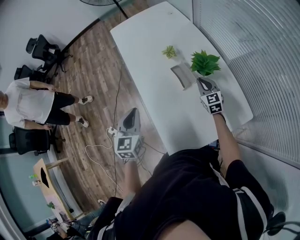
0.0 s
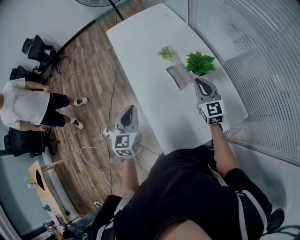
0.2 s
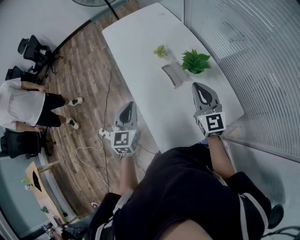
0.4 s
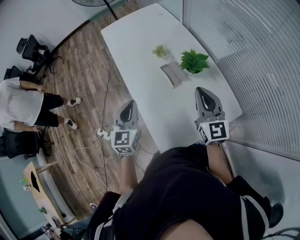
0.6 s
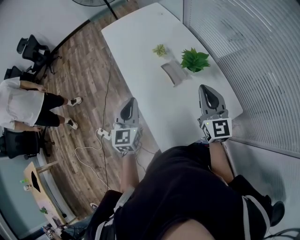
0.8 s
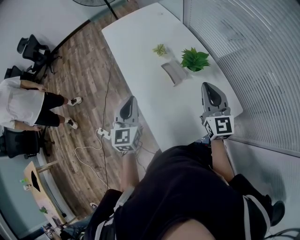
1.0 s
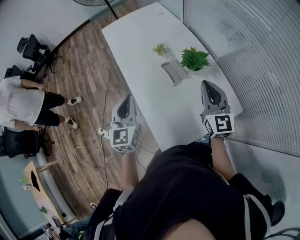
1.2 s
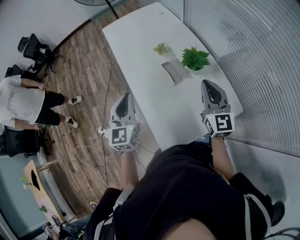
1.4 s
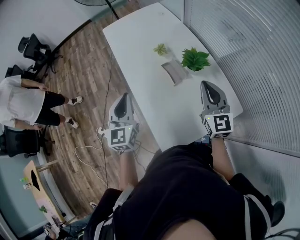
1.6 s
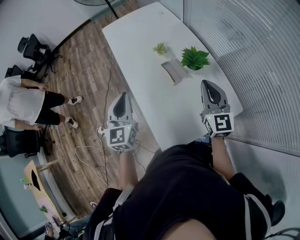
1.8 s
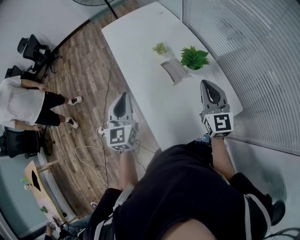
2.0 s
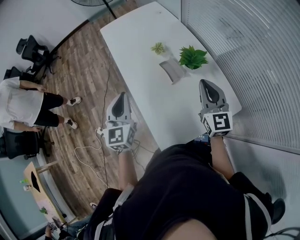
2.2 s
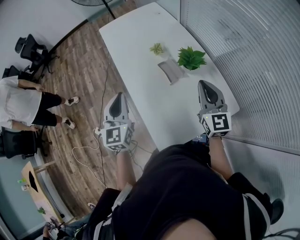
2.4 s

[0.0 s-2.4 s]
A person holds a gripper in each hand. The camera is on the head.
0.0 to 1.2 s: The right gripper travels upward and backward by roughly 25 cm, and swivels approximately 20 degrees. Meanwhile the left gripper moves upward, approximately 5 cm.
1.2 to 2.4 s: The grippers move only a little.

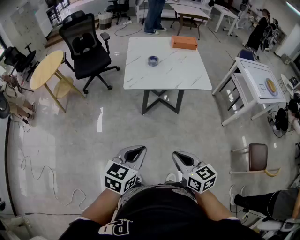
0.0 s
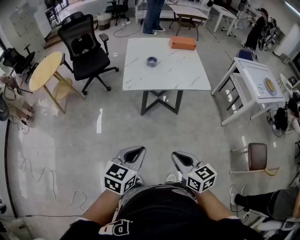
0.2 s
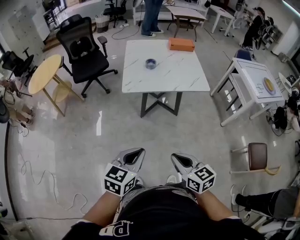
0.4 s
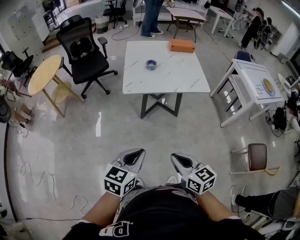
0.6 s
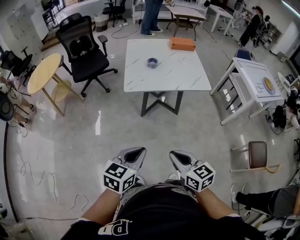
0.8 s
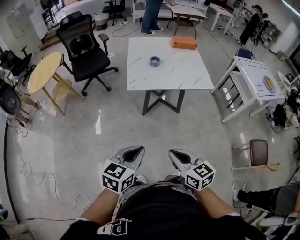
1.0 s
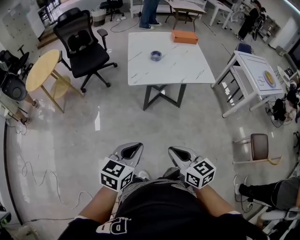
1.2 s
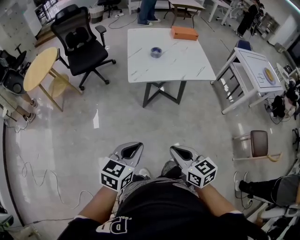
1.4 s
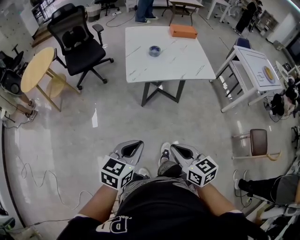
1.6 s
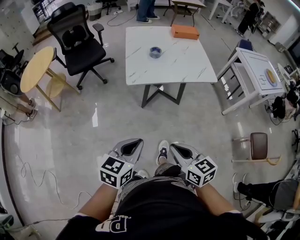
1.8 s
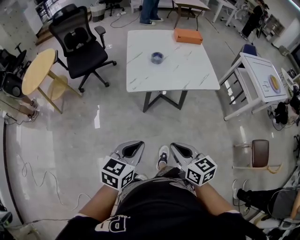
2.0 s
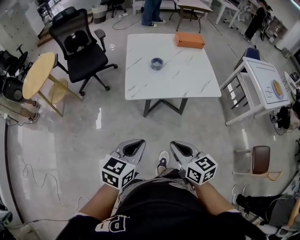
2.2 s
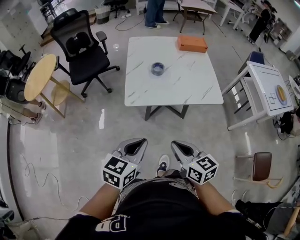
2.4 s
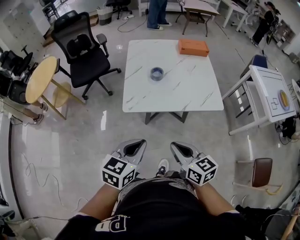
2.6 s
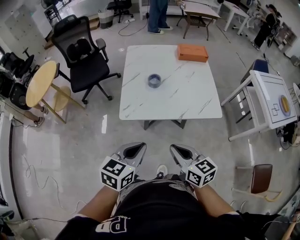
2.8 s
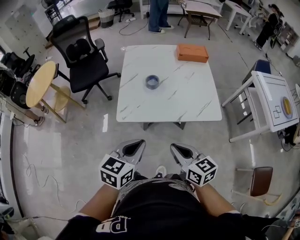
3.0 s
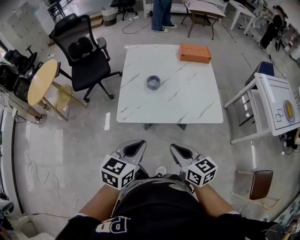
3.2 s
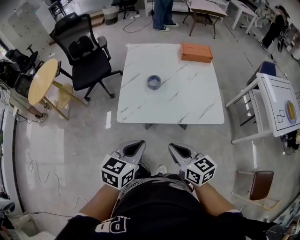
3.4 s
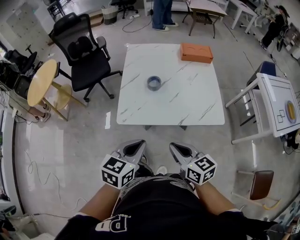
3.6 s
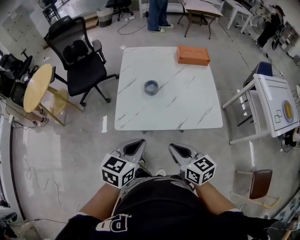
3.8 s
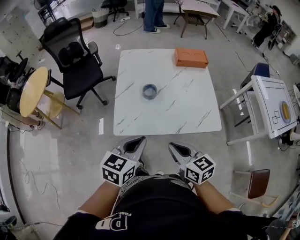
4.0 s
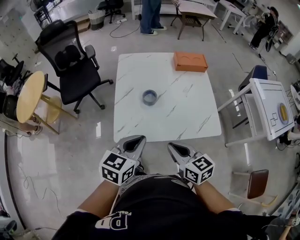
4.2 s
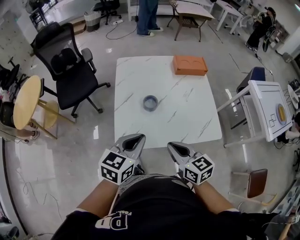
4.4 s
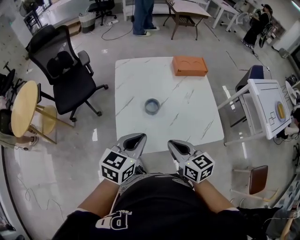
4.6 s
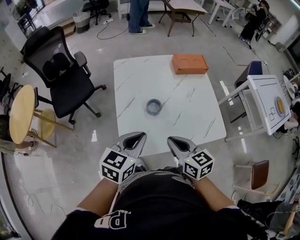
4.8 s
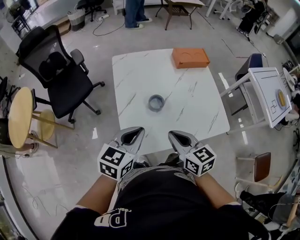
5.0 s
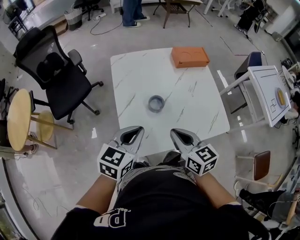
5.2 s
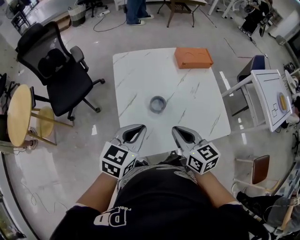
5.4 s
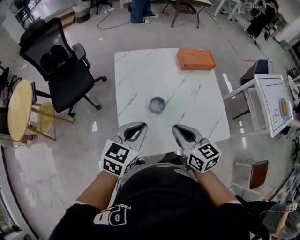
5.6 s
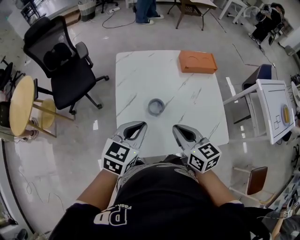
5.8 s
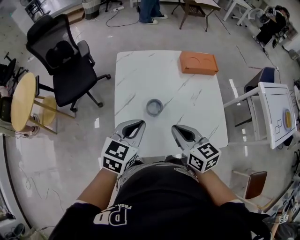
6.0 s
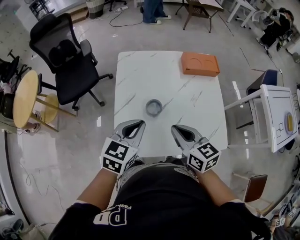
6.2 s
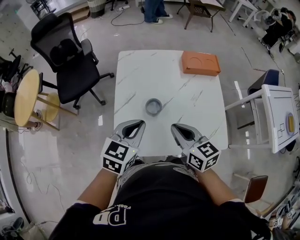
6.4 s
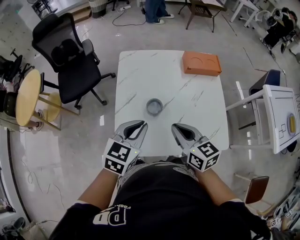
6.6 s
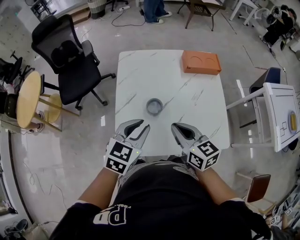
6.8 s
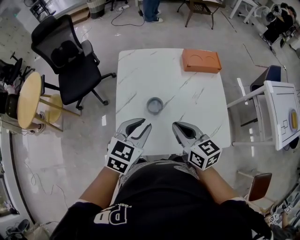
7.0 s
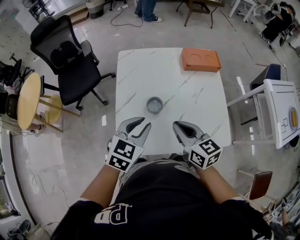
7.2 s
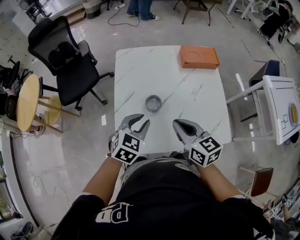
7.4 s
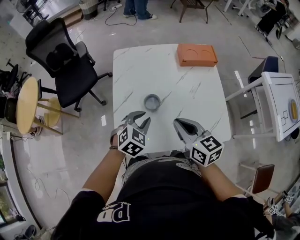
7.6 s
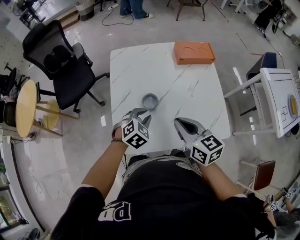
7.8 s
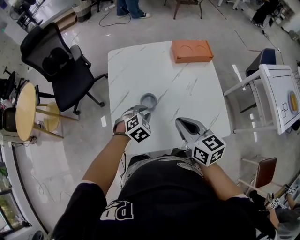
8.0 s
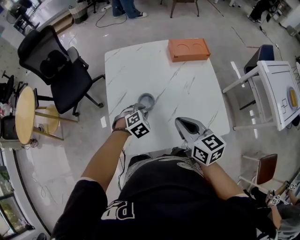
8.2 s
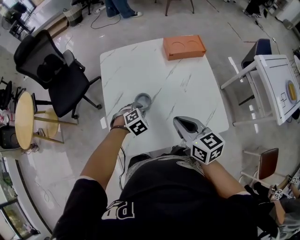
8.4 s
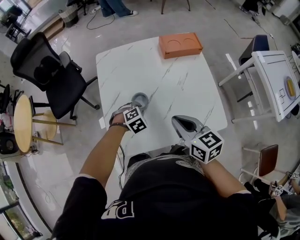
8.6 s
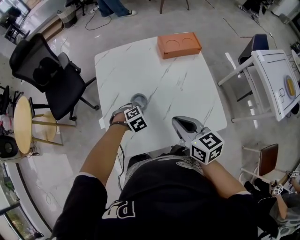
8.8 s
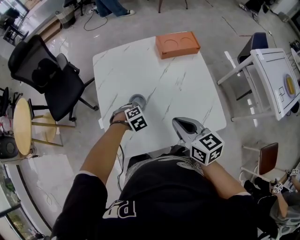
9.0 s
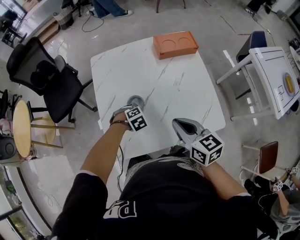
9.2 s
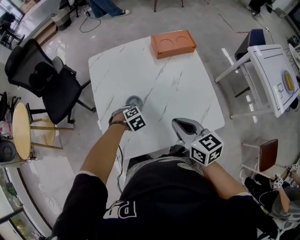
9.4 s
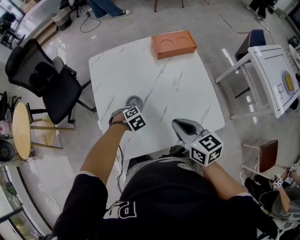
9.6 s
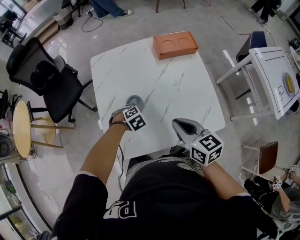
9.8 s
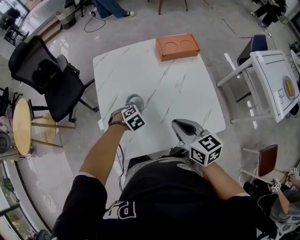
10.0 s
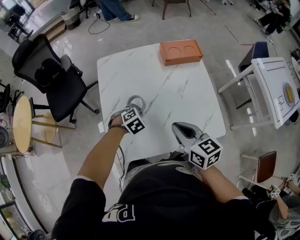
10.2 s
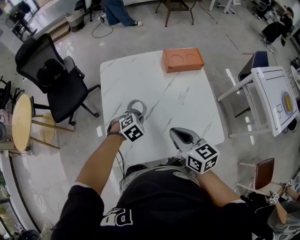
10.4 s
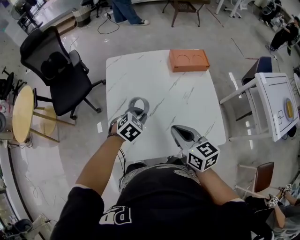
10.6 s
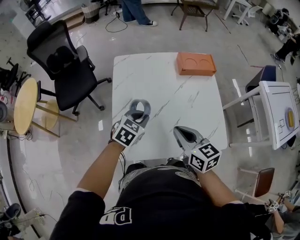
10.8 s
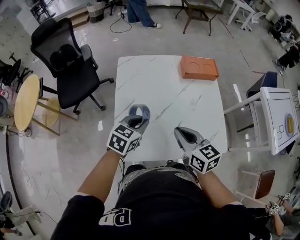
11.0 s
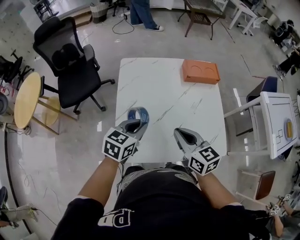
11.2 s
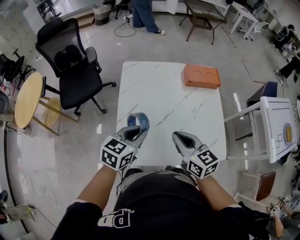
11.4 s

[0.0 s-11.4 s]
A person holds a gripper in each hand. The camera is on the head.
0.0 to 1.4 s: Both grippers travel together to the left, some 10 cm.
1.4 to 2.8 s: The grippers both shift forward by about 30 cm.
2.8 to 4.2 s: The grippers both shift forward by approximately 15 cm.
4.2 to 5.6 s: The two grippers go roughly 15 cm forward and to the left.
5.6 to 7.2 s: The right gripper ends up roughly 5 cm from where it was. The left gripper is displaced to the right by approximately 5 cm, and opens up.
7.2 to 8.6 s: The right gripper is displaced to the right by some 5 cm; the left gripper shifts about 20 cm downward, and points its fingers approximately 40 degrees further downward.
8.6 to 10.0 s: There are only small adjustments of the grippers.
10.0 to 11.4 s: The right gripper shifts approximately 10 cm to the left. Meanwhile the left gripper travels upward by roughly 20 cm, and points its fingers about 40 degrees further upward.

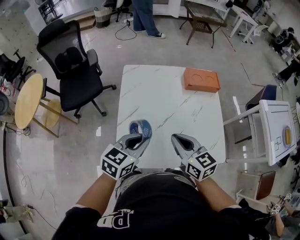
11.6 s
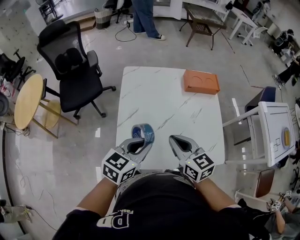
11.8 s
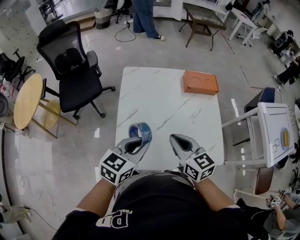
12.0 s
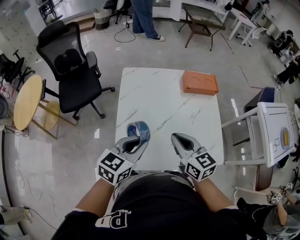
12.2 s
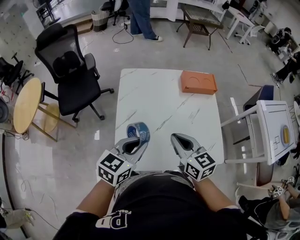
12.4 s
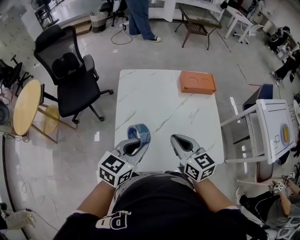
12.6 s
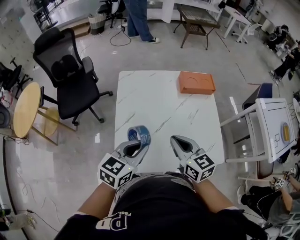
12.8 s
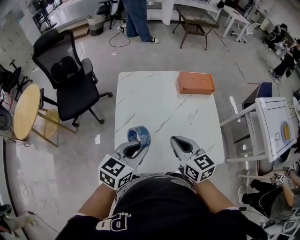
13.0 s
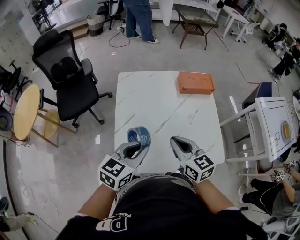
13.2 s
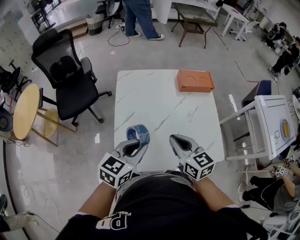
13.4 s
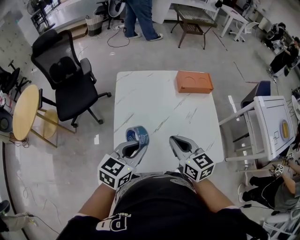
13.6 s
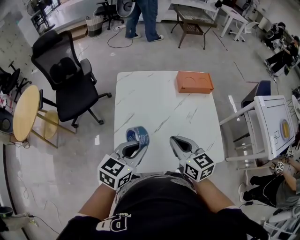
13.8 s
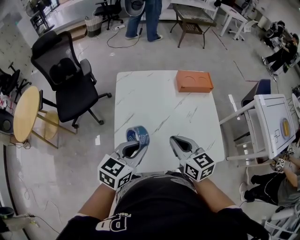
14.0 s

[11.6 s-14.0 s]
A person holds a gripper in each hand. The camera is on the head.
11.6 to 12.8 s: The grippers move only a little.
12.8 to 14.0 s: Neither gripper changes place.

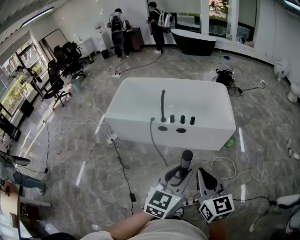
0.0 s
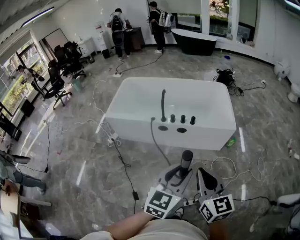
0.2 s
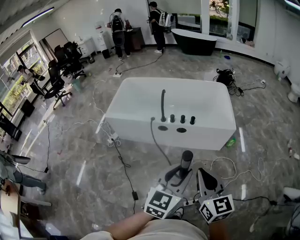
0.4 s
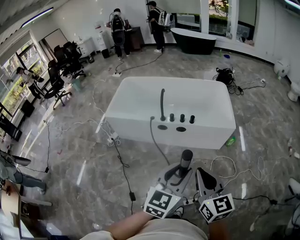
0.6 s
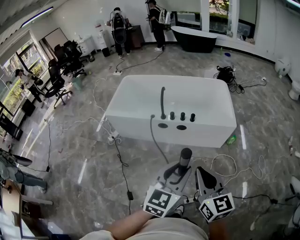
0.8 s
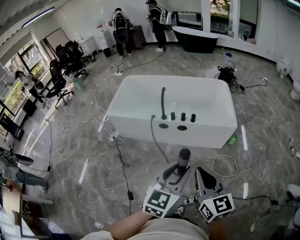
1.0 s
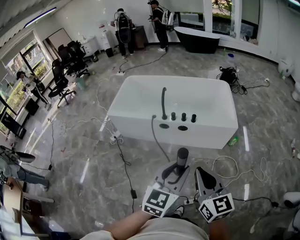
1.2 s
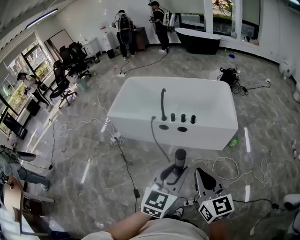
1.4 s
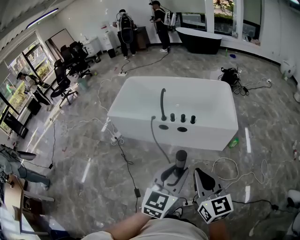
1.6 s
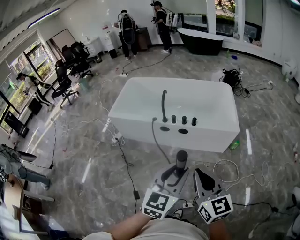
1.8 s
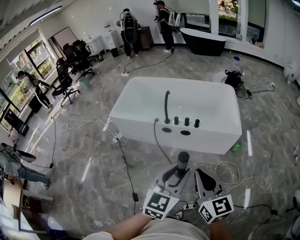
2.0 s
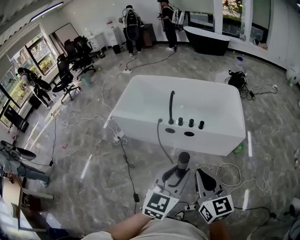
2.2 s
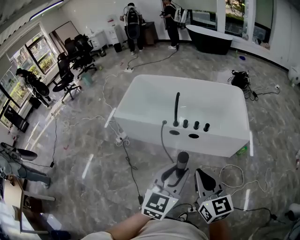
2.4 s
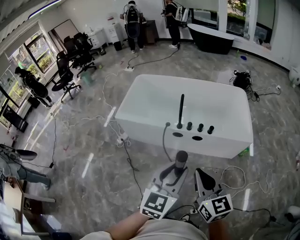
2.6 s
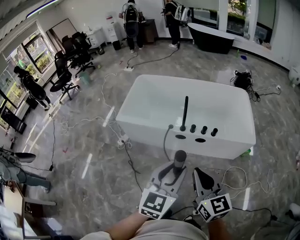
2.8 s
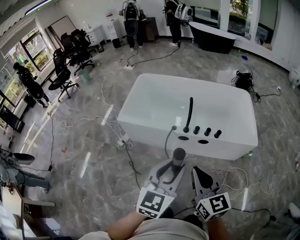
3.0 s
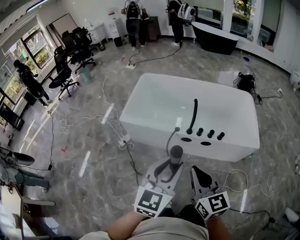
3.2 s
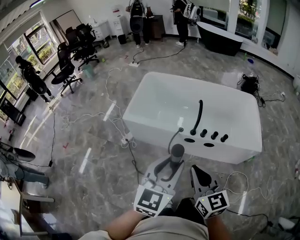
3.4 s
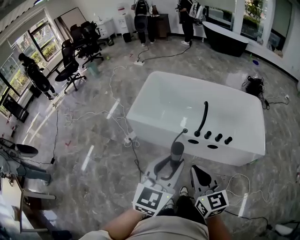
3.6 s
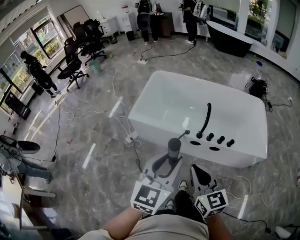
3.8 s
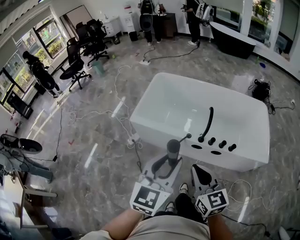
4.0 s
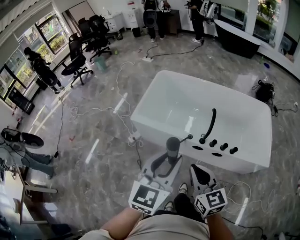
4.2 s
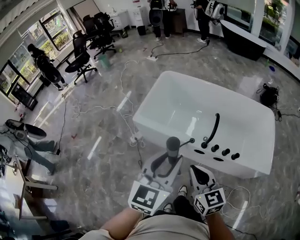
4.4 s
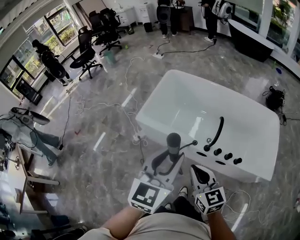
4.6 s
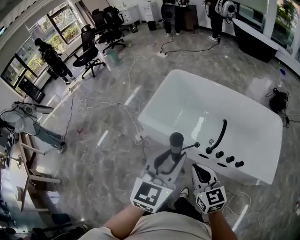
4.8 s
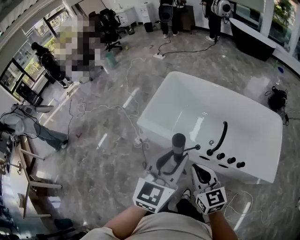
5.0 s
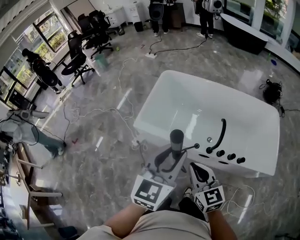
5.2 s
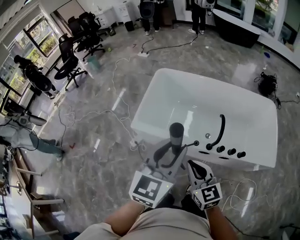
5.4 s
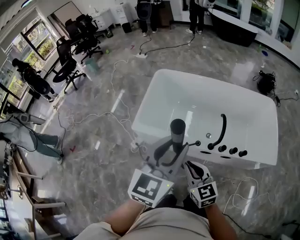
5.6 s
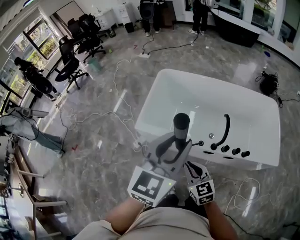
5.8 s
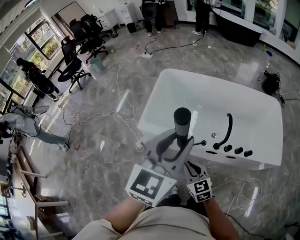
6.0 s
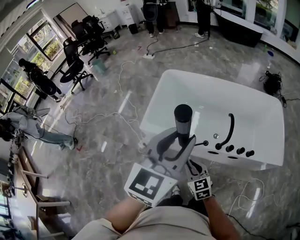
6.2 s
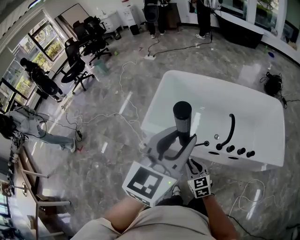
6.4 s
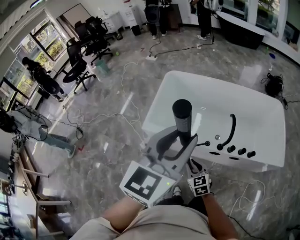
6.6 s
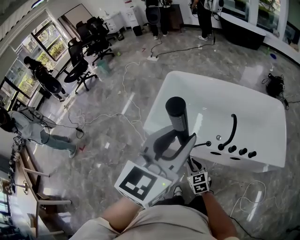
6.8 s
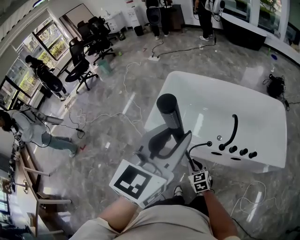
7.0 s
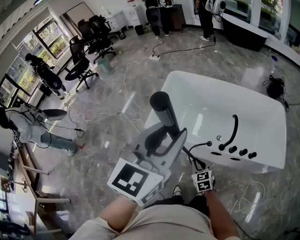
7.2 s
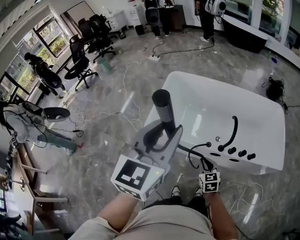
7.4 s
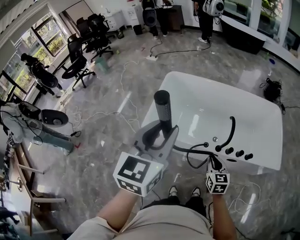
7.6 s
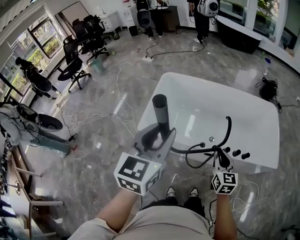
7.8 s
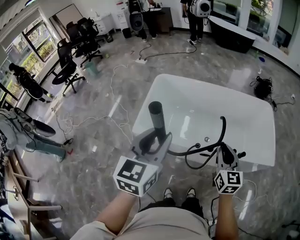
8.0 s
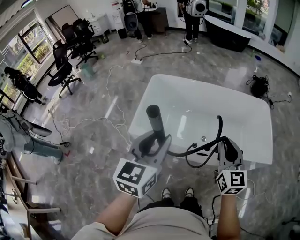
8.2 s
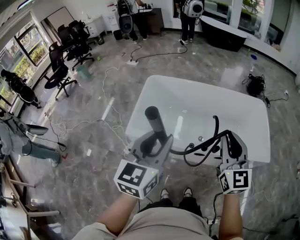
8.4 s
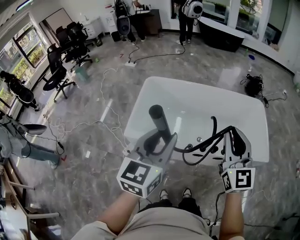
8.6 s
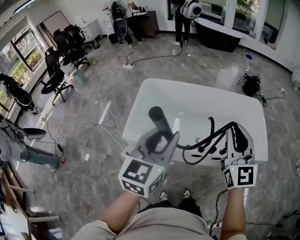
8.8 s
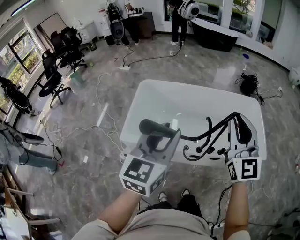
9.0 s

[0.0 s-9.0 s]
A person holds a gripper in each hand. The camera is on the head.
0.0 to 1.6 s: The grippers move only a little.
1.6 to 3.0 s: The two grippers go some 30 cm to the left and forward.
3.0 to 4.4 s: The two grippers go approximately 20 cm forward and to the left.
4.4 to 6.0 s: The right gripper shifts roughly 20 cm downward, to the left and forward, while the left gripper travels forward by about 15 cm.
6.0 to 7.6 s: The right gripper is displaced to the right by about 10 cm, and changes its angle by about 20 degrees, while the left gripper moves to the left, roughly 5 cm.
7.6 to 9.0 s: The left gripper moves to the right, some 10 cm. The right gripper goes roughly 35 cm upward, and points its fingers some 40 degrees further upward.
